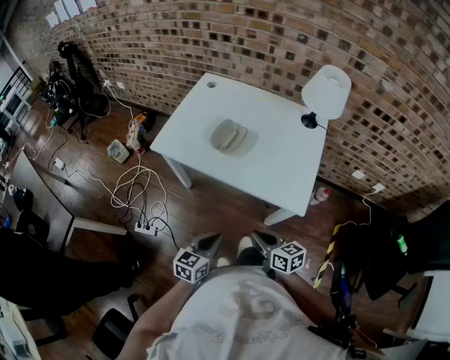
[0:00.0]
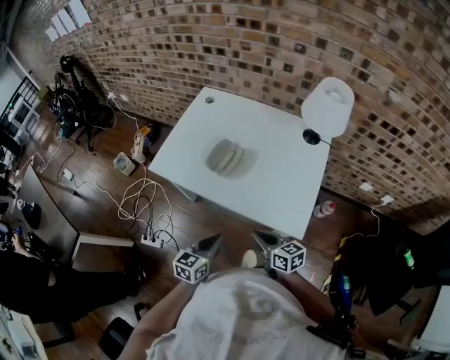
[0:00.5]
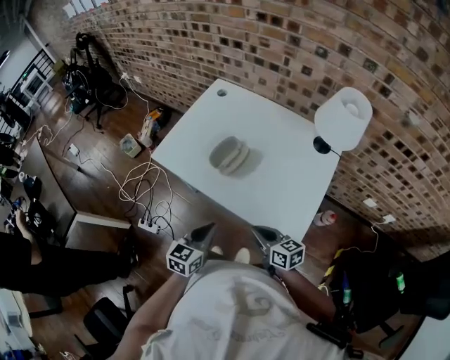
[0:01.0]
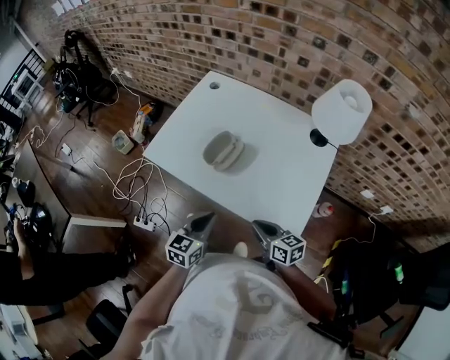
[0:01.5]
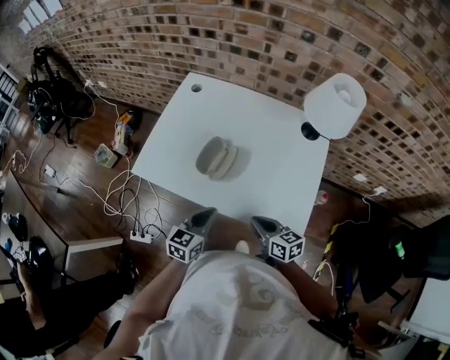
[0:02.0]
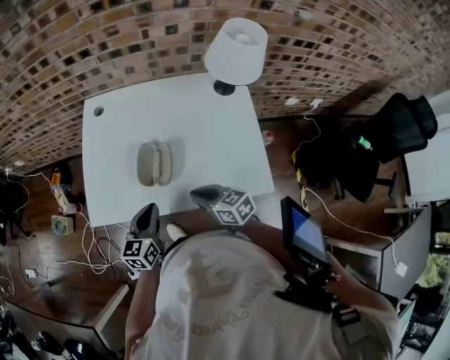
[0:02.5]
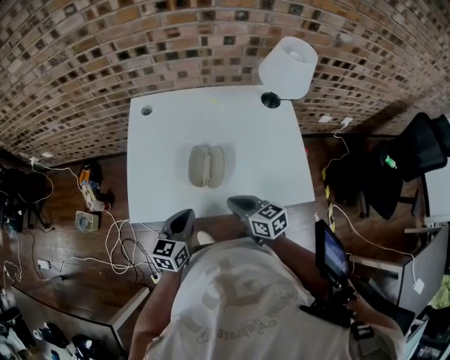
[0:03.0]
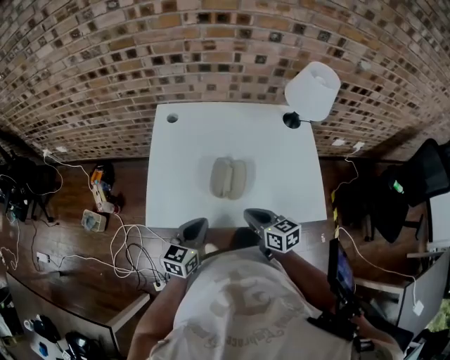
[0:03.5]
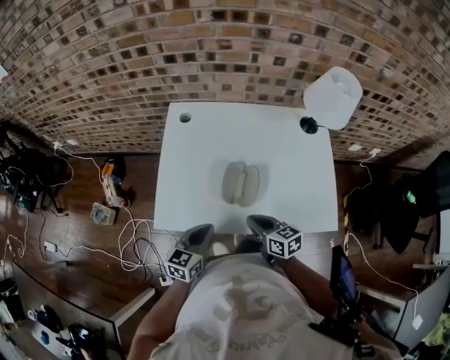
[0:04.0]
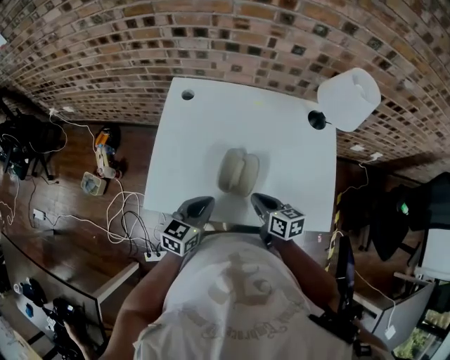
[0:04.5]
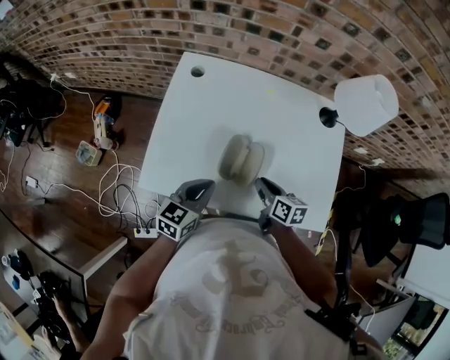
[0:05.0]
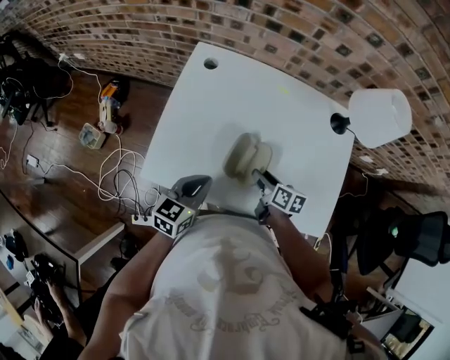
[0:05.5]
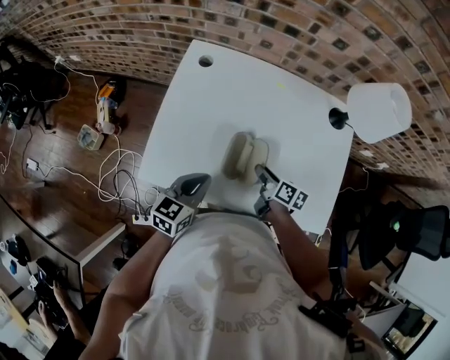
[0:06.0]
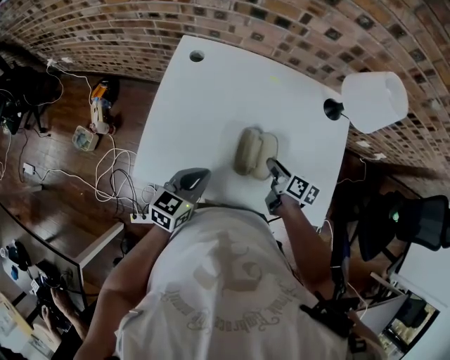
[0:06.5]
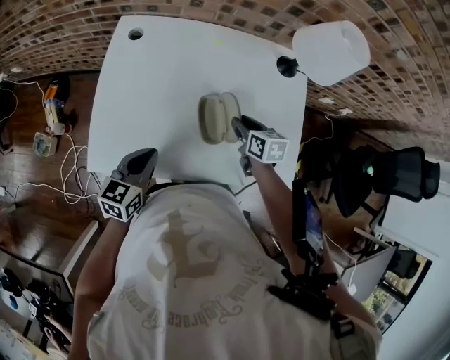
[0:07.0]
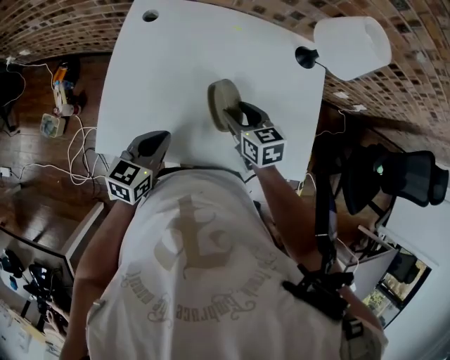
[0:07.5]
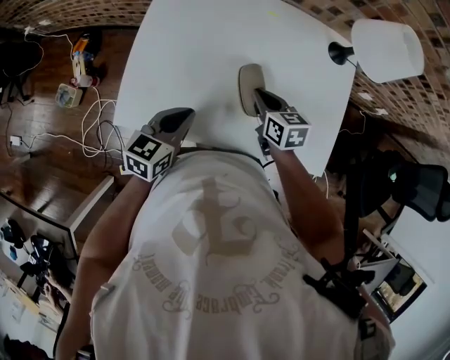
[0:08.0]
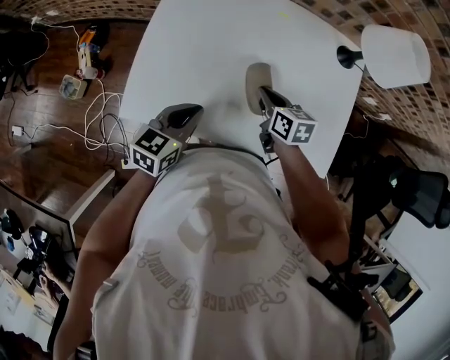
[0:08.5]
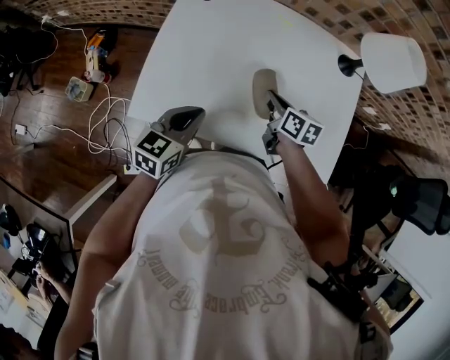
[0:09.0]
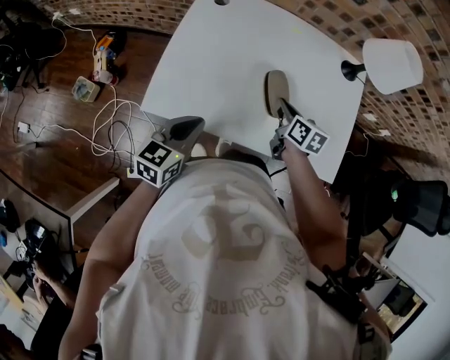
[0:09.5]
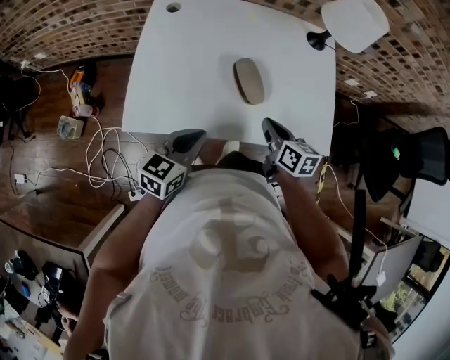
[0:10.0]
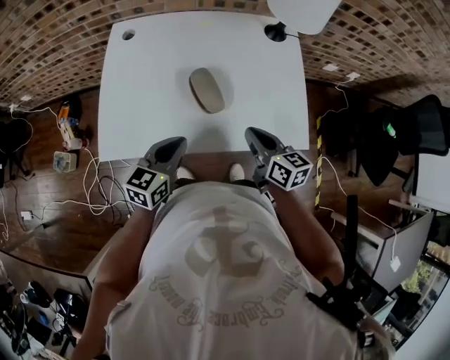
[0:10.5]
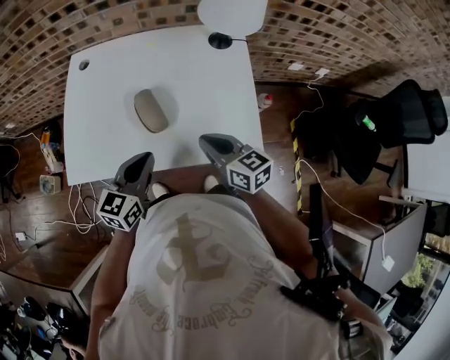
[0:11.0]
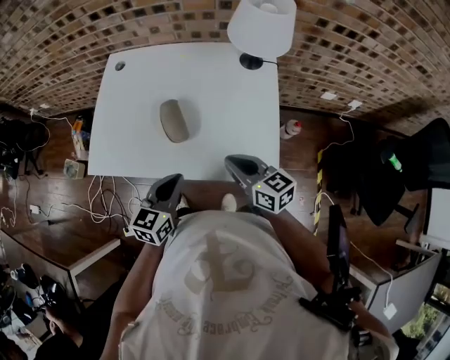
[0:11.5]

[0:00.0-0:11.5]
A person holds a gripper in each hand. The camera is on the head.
0:00.0 to 0:02.0: The grippers both shift forward by roughly 20 cm.
0:02.0 to 0:04.0: Both grippers move to the left and forward, roughly 20 cm.
0:04.0 to 0:06.0: The right gripper moves forward, downward and to the right, roughly 15 cm, turns by roughly 30 degrees, and opens up, while the left gripper goes roughly 5 cm forward.
0:06.0 to 0:07.5: The right gripper shifts some 5 cm upward, goes to the right and returns, approximately 10 cm each way, and twists about 40 degrees counterclockwise, seen from behind.
0:07.5 to 0:09.5: The left gripper goes roughly 10 cm backward and to the left. The right gripper swivels roughly 20 degrees, and closes.
0:09.5 to 0:11.5: The right gripper travels to the right, backward and upward by approximately 25 cm, and swivels roughly 30 degrees. Meanwhile the left gripper goes approximately 25 cm to the right.

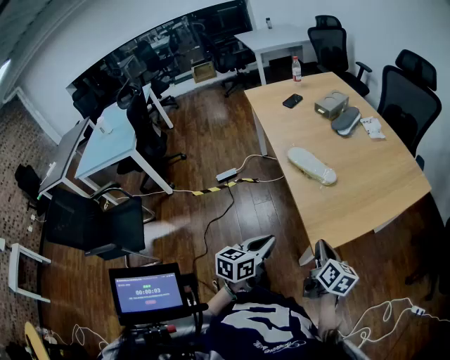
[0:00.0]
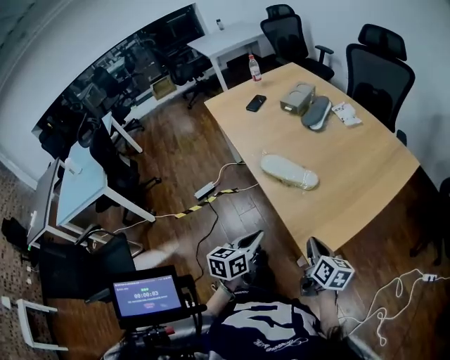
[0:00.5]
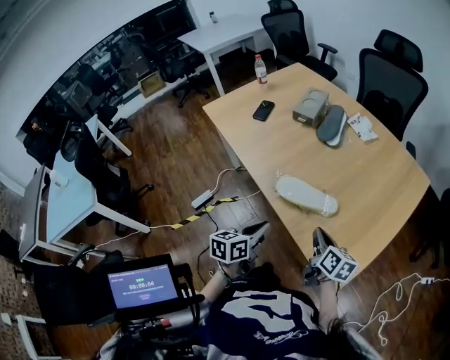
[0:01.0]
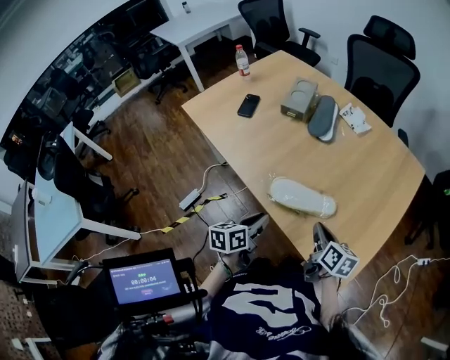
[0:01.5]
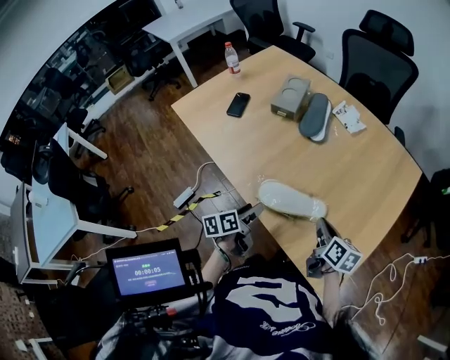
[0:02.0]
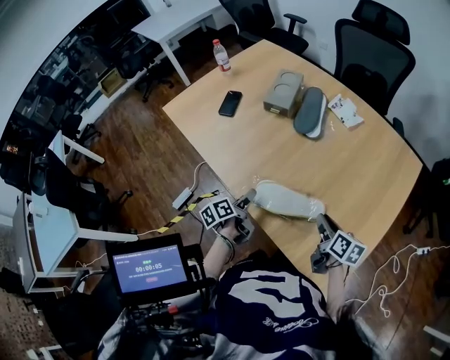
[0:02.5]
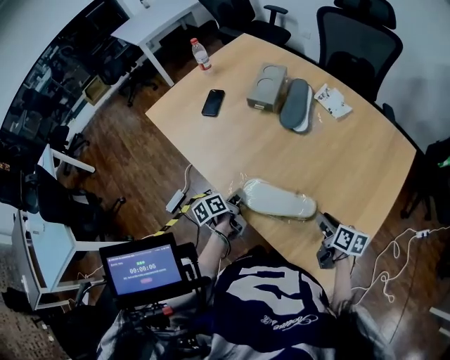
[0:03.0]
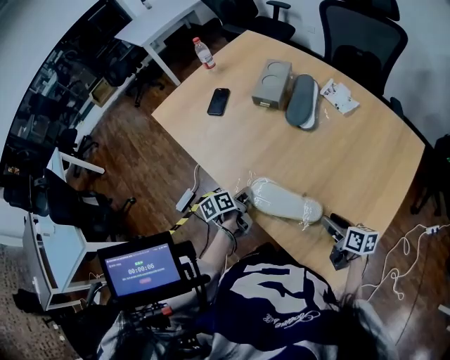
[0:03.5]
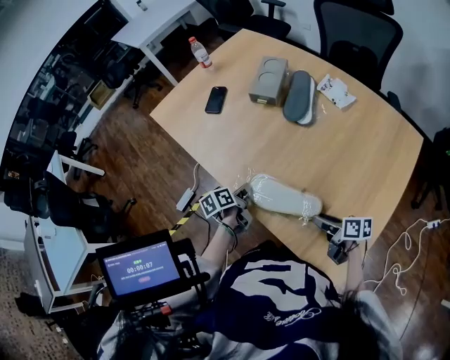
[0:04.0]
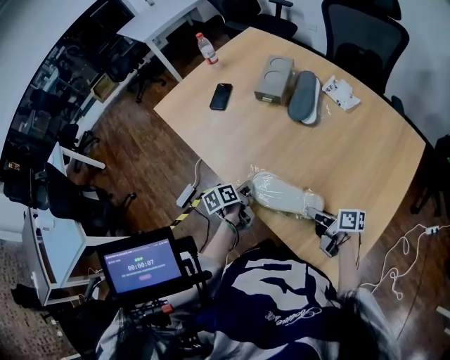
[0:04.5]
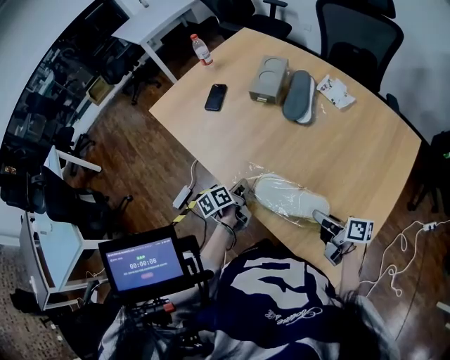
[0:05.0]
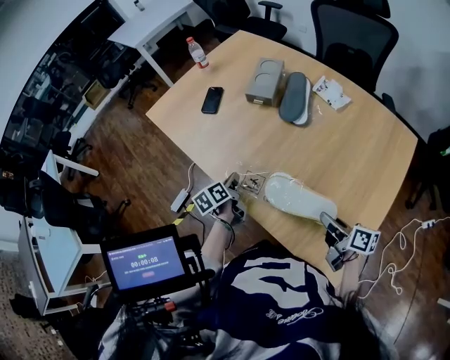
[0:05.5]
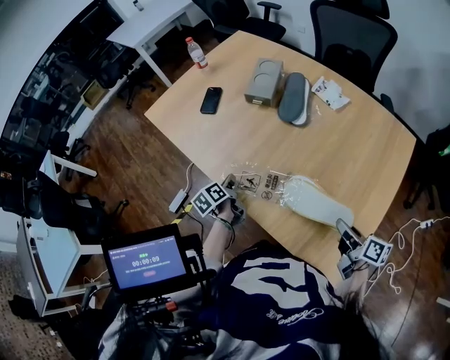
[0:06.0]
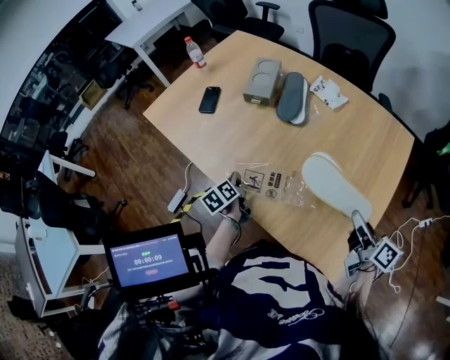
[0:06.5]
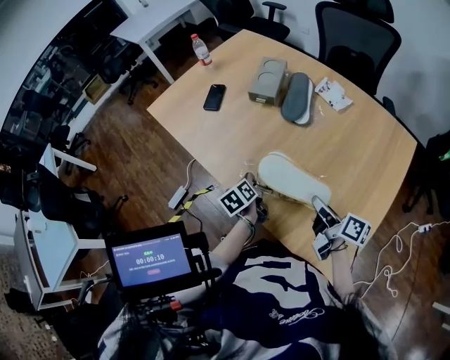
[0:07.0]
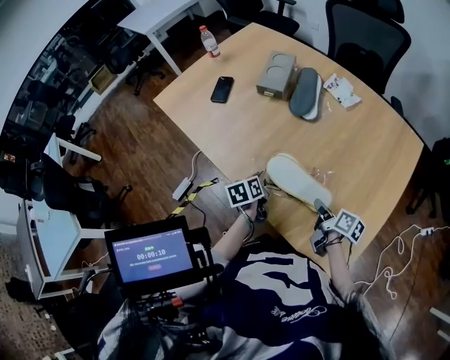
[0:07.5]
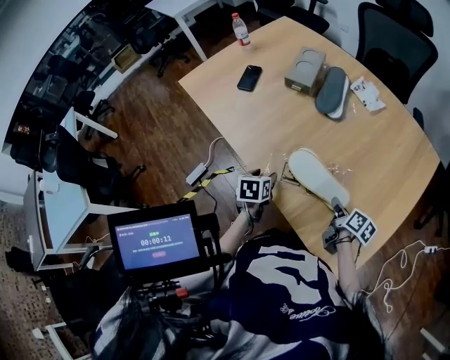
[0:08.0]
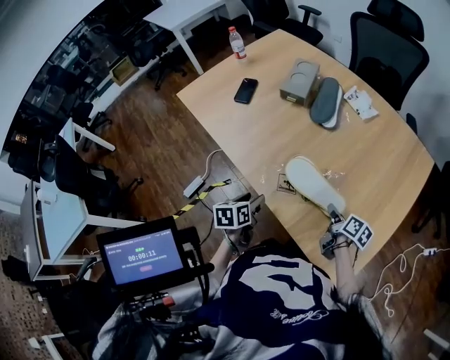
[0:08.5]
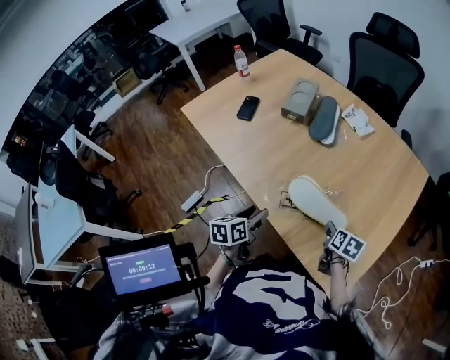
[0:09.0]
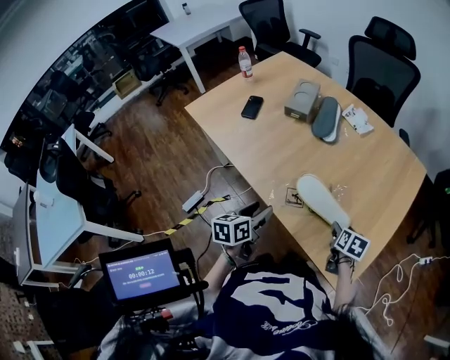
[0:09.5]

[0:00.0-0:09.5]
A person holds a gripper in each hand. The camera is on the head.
0:00.0 to 0:02.0: The left gripper travels forward and to the left by roughly 40 cm, rotates about 30 degrees, and opens; the right gripper heads forward, covering approximately 30 cm, and swivels about 20 degrees.
0:02.0 to 0:04.0: The left gripper heads forward and downward, covering approximately 10 cm, and closes up. The right gripper moves downward, approximately 10 cm, changes its angle by some 30 degrees, and opens its fingers.
0:04.0 to 0:05.5: The left gripper moves approximately 5 cm. The right gripper goes approximately 10 cm upward, and closes.
0:05.5 to 0:07.5: The right gripper moves downward, roughly 5 cm, while the left gripper shifts about 5 cm to the right.
0:07.5 to 0:09.5: The right gripper shifts by about 5 cm, turns by roughly 40 degrees, and opens its fingers. The left gripper heads backward and upward, covering some 15 cm, swivels some 20 degrees, and opens up.

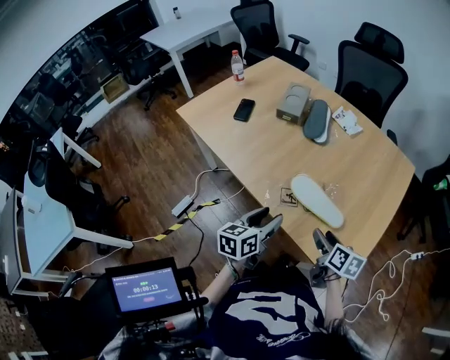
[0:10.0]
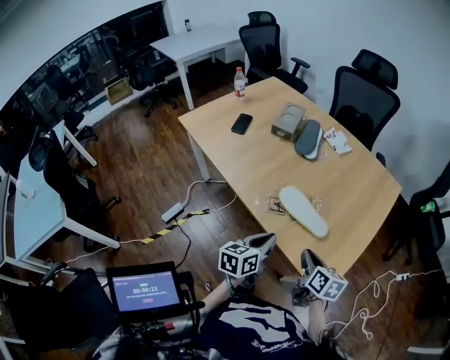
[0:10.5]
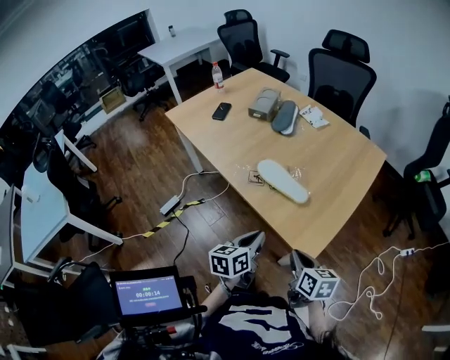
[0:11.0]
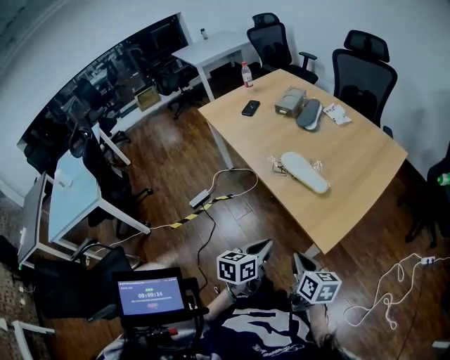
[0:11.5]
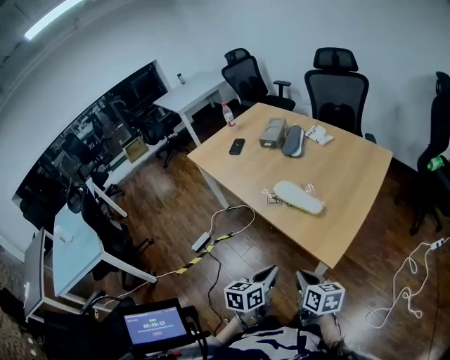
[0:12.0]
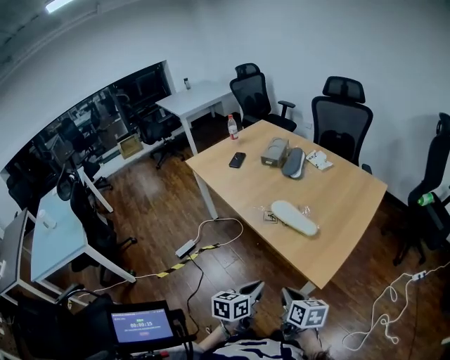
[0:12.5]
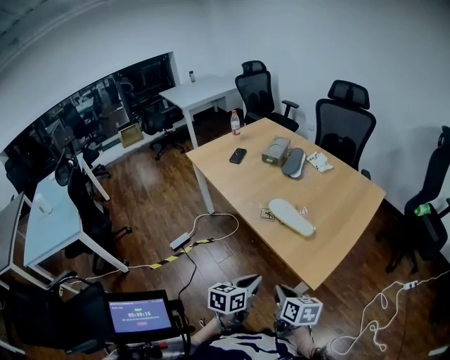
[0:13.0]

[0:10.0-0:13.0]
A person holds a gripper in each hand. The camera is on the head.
0:10.0 to 0:11.5: The right gripper heads backward, covering approximately 25 cm, rotates some 20 degrees, and closes up, while the left gripper heads backward and to the right, covering about 30 cm, and closes its fingers.
0:11.5 to 0:13.0: The right gripper travels to the left by roughly 5 cm.

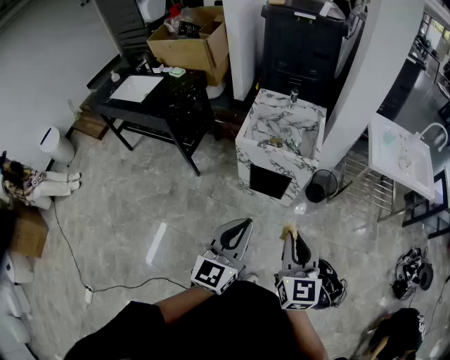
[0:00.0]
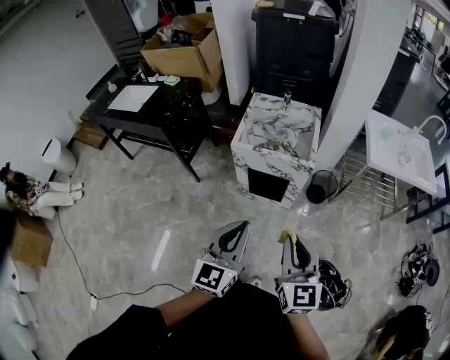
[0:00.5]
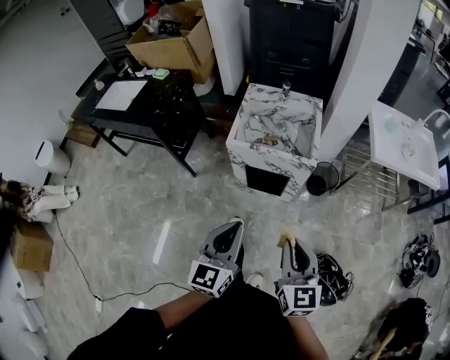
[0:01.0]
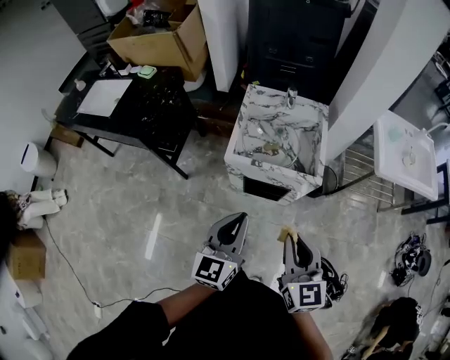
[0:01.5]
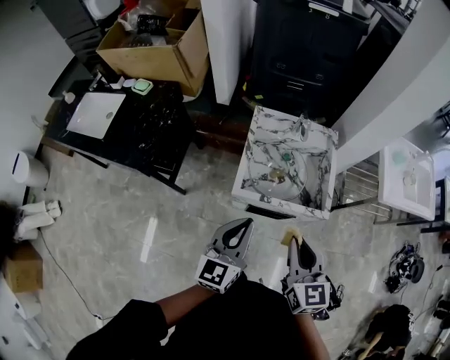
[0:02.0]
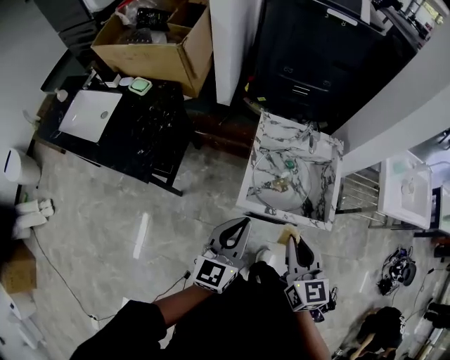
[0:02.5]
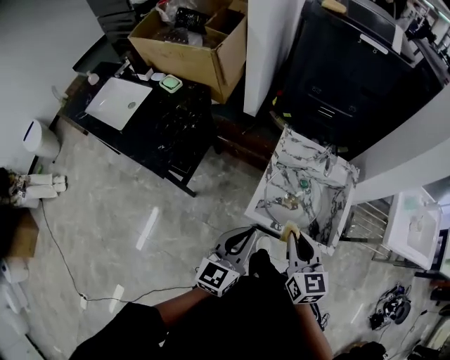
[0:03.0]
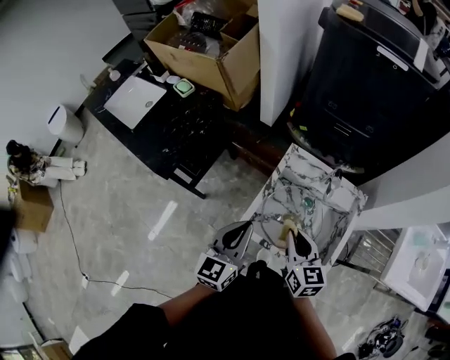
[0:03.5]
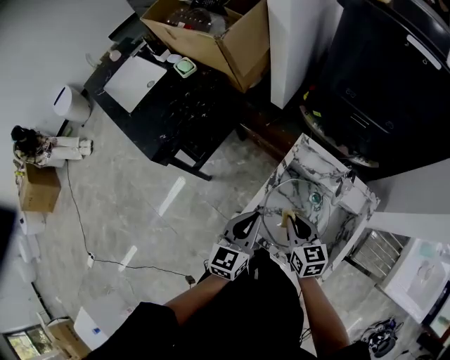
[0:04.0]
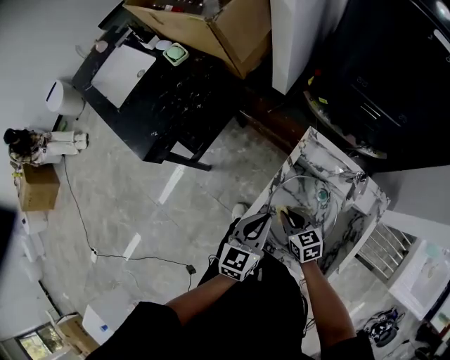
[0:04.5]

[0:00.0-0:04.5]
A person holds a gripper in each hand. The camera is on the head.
0:00.0 to 0:02.0: The two grippers go approximately 35 cm forward.
0:02.0 to 0:04.5: The left gripper changes place by about 30 cm, and swivels roughly 30 degrees. The right gripper shifts some 30 cm downward, and swivels about 50 degrees.
